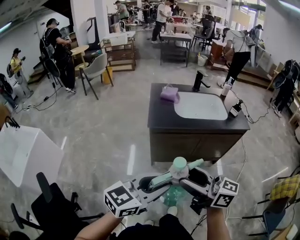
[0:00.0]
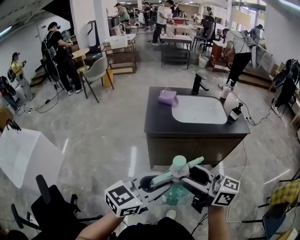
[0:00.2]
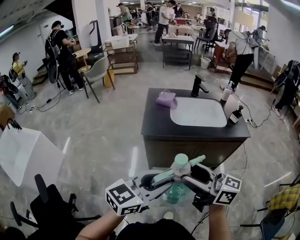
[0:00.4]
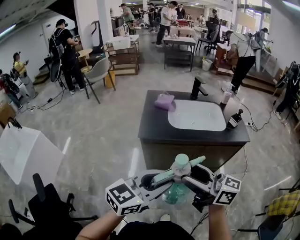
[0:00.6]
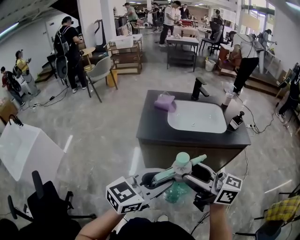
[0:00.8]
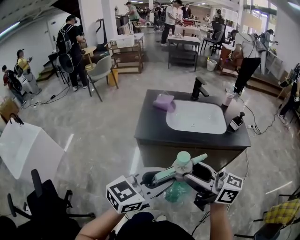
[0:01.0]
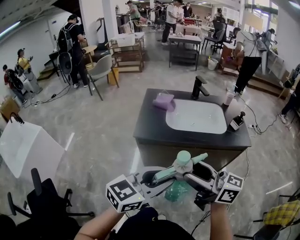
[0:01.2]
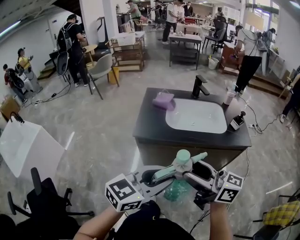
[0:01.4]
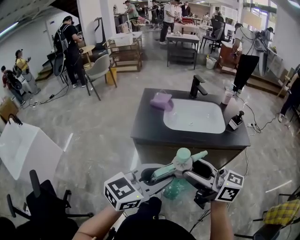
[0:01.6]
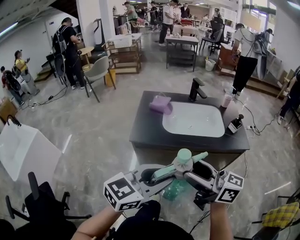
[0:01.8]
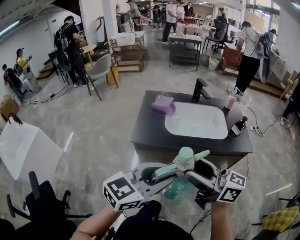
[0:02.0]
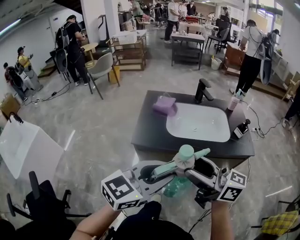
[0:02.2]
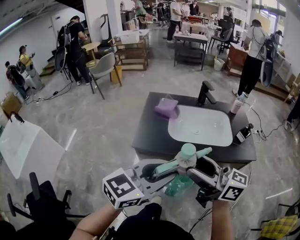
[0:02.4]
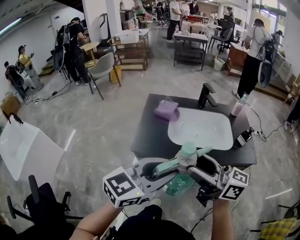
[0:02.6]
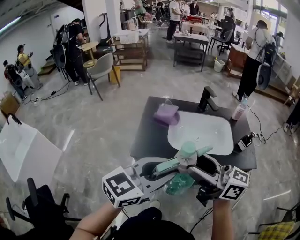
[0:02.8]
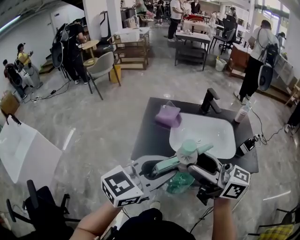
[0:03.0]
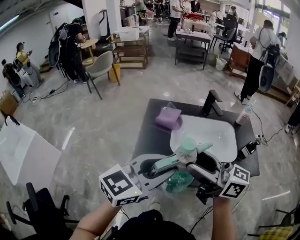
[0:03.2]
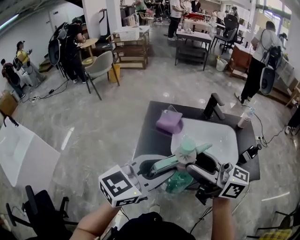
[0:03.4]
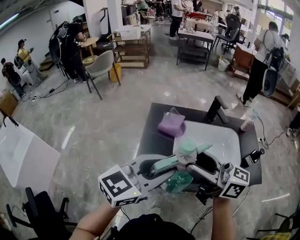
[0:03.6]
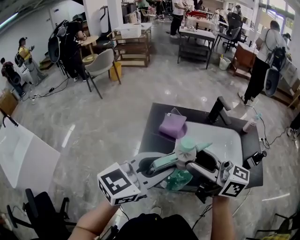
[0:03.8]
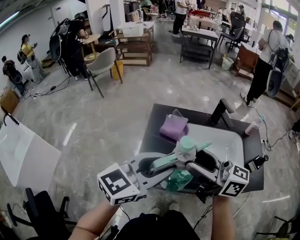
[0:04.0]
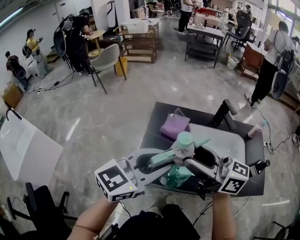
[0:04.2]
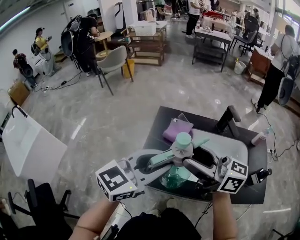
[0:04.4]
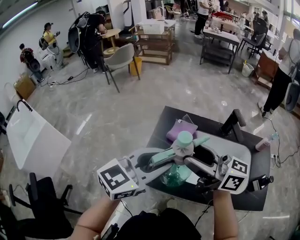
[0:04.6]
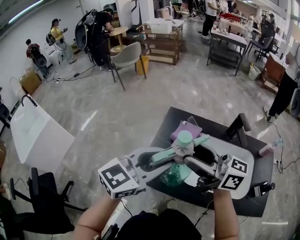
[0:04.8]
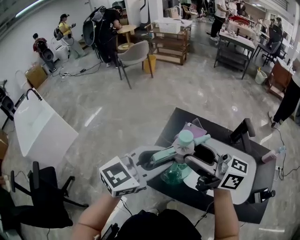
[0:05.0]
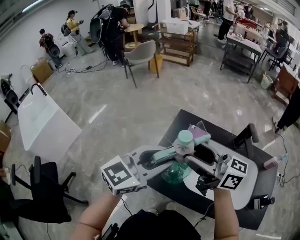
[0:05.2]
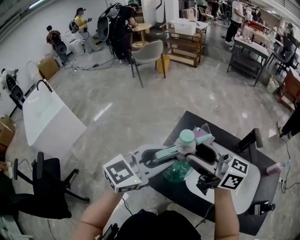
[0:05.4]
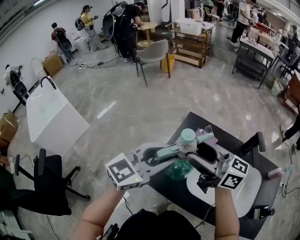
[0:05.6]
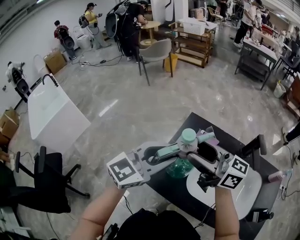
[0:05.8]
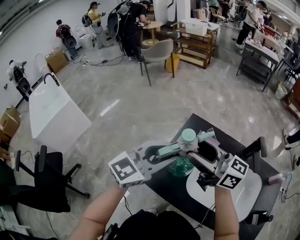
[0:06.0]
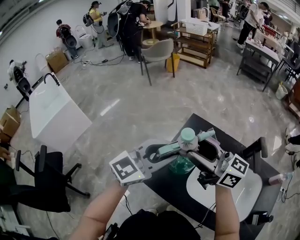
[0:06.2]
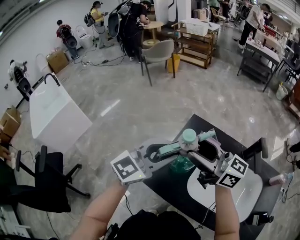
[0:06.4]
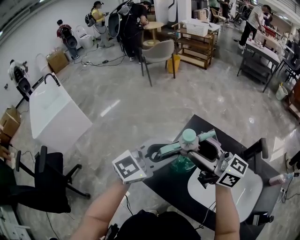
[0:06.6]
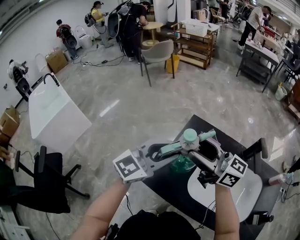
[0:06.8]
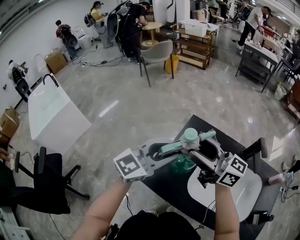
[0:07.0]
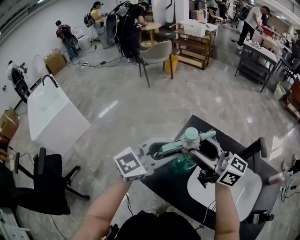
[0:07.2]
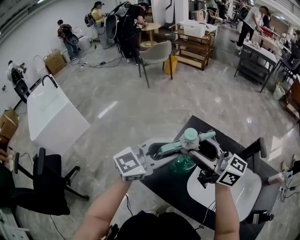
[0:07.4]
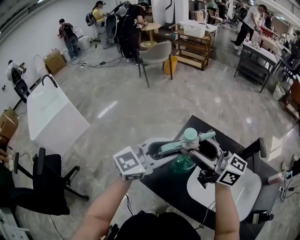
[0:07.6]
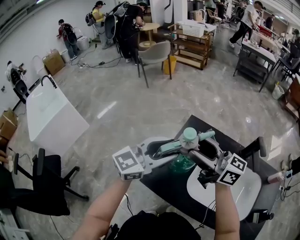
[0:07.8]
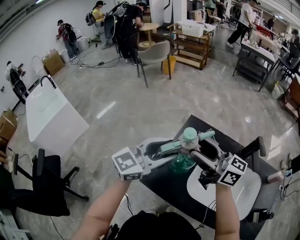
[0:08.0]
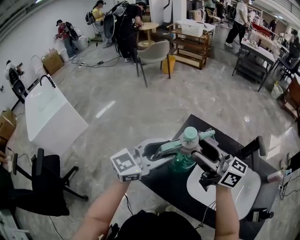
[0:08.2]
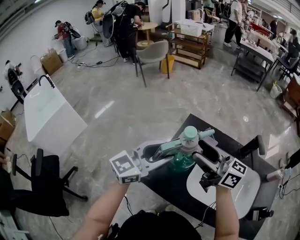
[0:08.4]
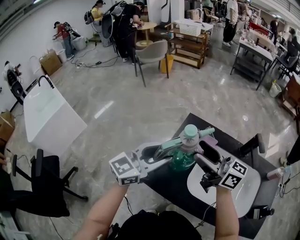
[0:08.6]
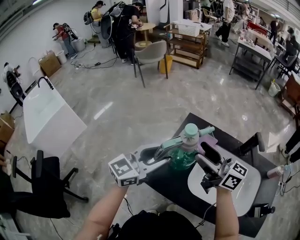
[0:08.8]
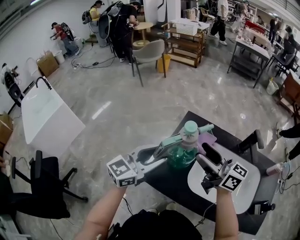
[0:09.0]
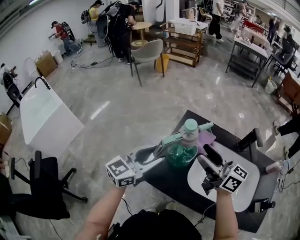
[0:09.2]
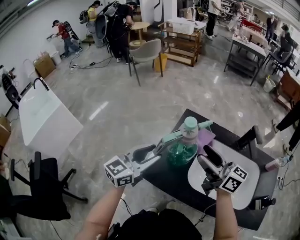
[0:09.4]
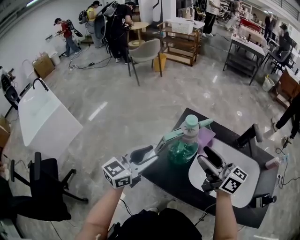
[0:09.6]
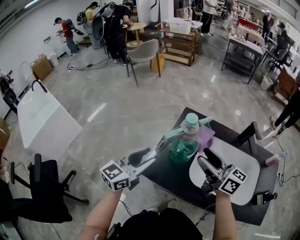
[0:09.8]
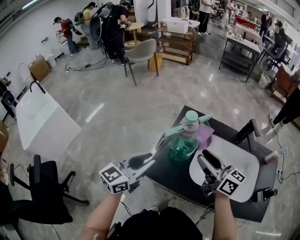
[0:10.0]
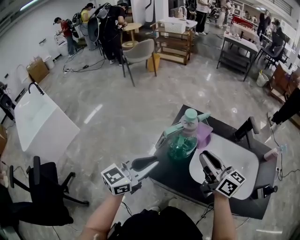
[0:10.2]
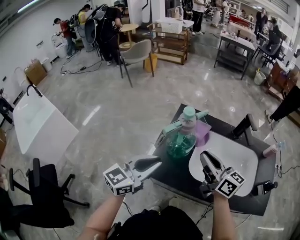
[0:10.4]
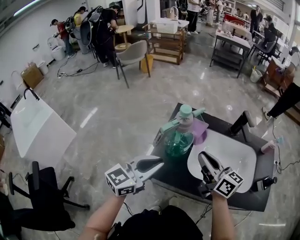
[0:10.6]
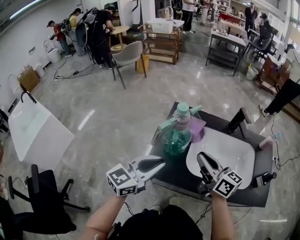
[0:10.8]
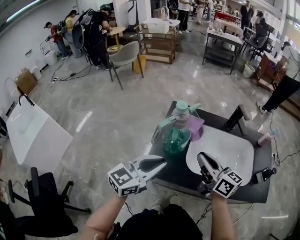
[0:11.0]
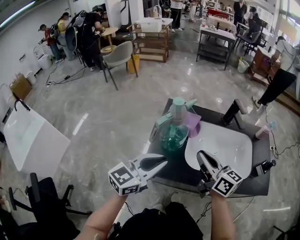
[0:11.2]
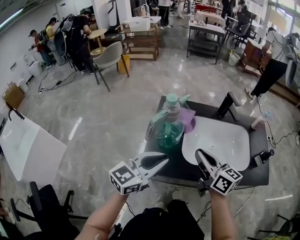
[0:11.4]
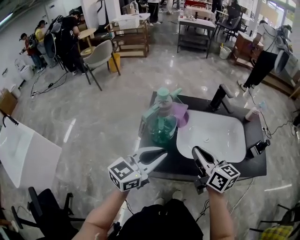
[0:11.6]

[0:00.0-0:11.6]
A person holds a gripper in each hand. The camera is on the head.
0:00.0 to 0:01.4: The two grippers go approximately 20 cm to the right and forward.
0:01.4 to 0:02.8: Both grippers move forward, some 15 cm.
0:02.8 to 0:04.4: Both grippers move forward, approximately 20 cm.
0:04.4 to 0:05.8: Both grippers move forward, approximately 10 cm.
0:05.8 to 0:07.2: The grippers make only small movements.
0:07.2 to 0:08.8: The left gripper shifts by some 5 cm.
0:08.8 to 0:10.2: Both grippers travel together backward, about 5 cm. The right gripper closes; the left gripper closes.
0:10.2 to 0:11.6: The left gripper shifts approximately 10 cm to the right; the right gripper shifts approximately 5 cm backward, and rotates some 20 degrees.

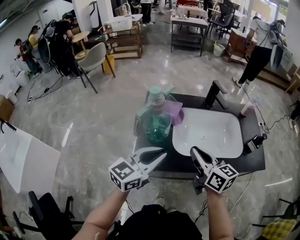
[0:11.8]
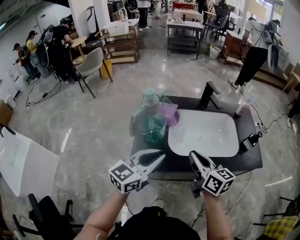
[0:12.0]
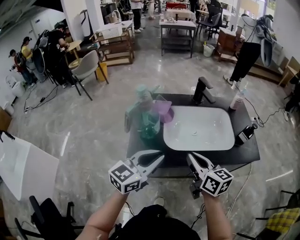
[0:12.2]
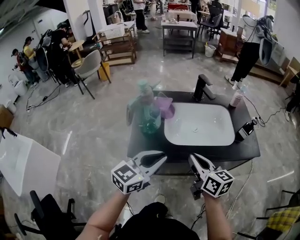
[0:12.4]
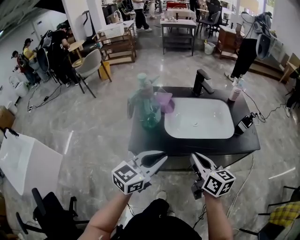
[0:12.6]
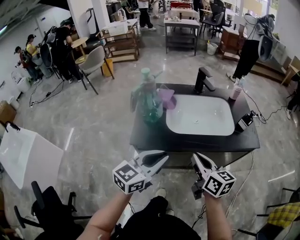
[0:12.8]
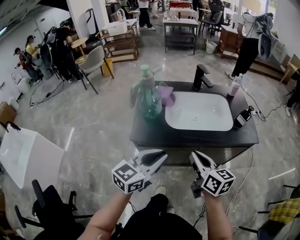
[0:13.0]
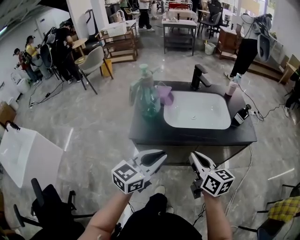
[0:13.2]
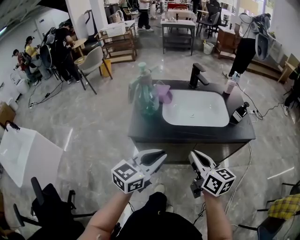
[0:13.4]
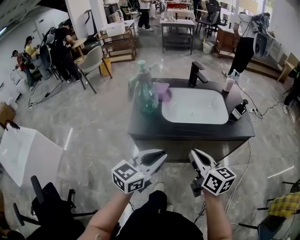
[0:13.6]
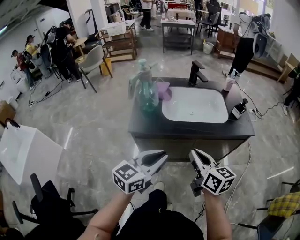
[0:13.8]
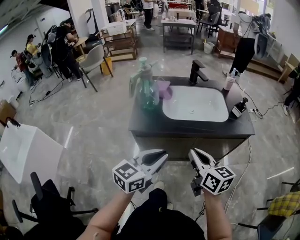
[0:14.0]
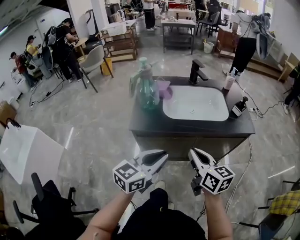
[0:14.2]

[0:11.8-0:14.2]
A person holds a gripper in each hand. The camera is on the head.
0:11.8 to 0:13.0: Both grippers move backward and to the right, some 20 cm.
0:13.0 to 0:14.2: The grippers both shift backward by approximately 5 cm.

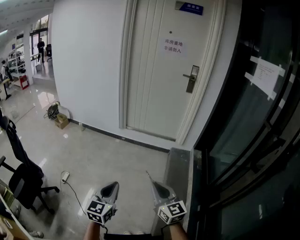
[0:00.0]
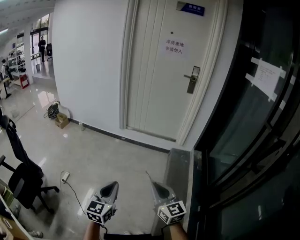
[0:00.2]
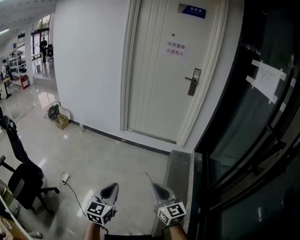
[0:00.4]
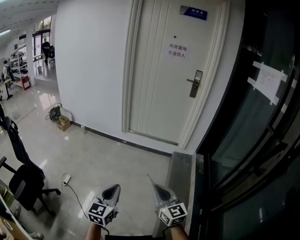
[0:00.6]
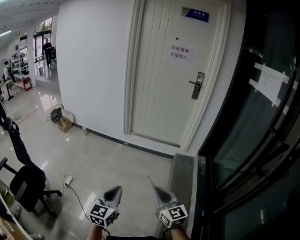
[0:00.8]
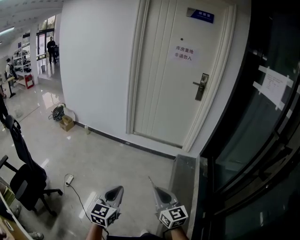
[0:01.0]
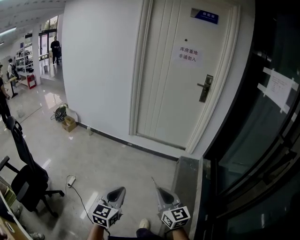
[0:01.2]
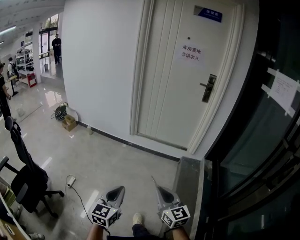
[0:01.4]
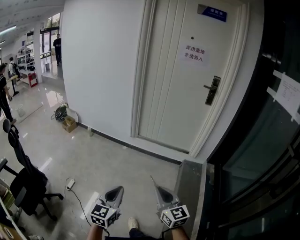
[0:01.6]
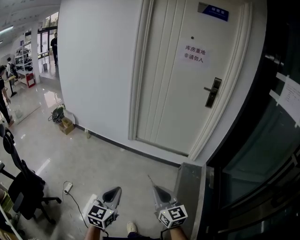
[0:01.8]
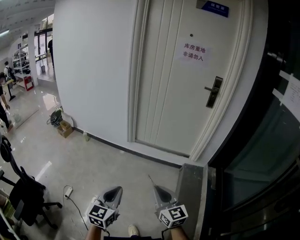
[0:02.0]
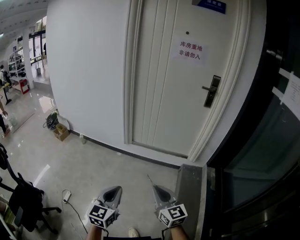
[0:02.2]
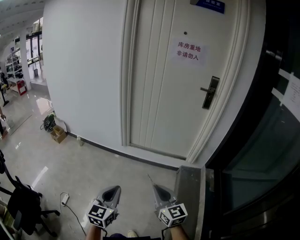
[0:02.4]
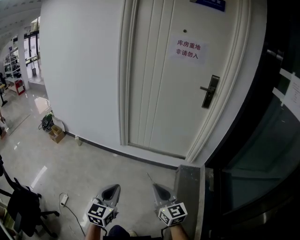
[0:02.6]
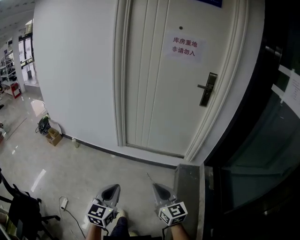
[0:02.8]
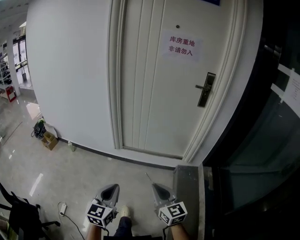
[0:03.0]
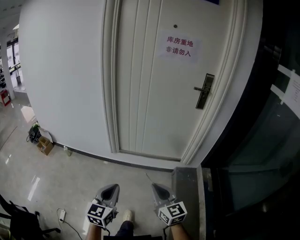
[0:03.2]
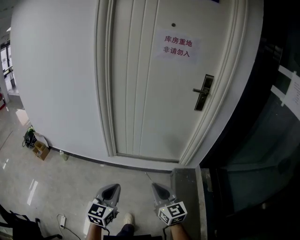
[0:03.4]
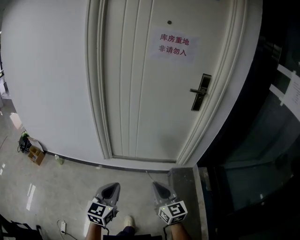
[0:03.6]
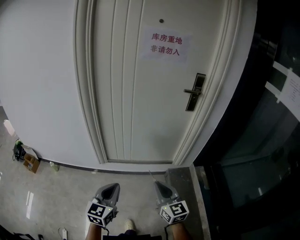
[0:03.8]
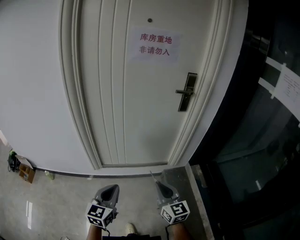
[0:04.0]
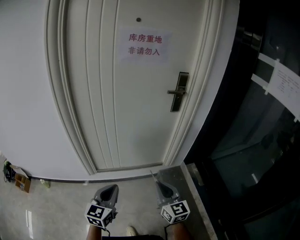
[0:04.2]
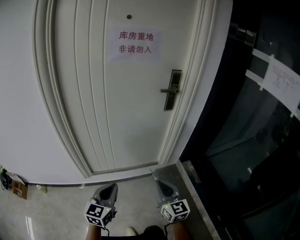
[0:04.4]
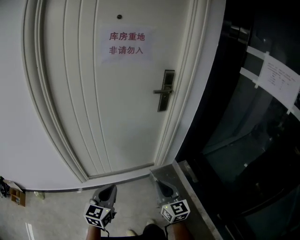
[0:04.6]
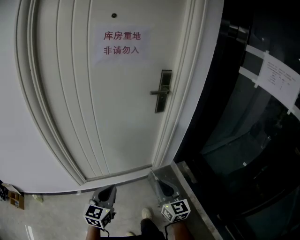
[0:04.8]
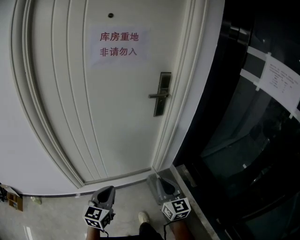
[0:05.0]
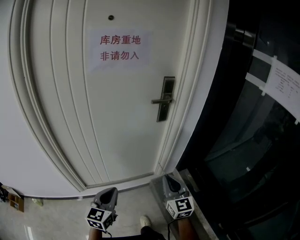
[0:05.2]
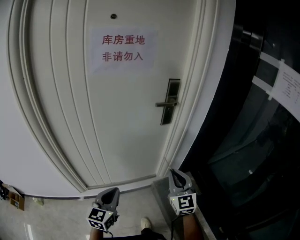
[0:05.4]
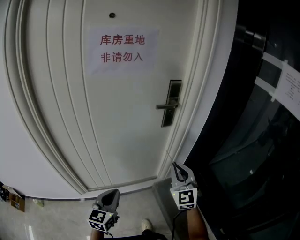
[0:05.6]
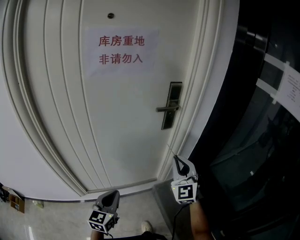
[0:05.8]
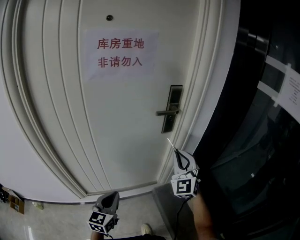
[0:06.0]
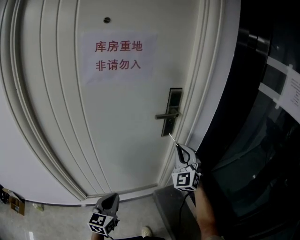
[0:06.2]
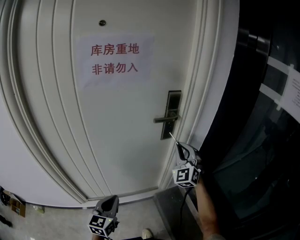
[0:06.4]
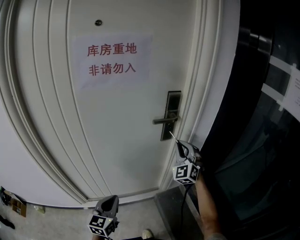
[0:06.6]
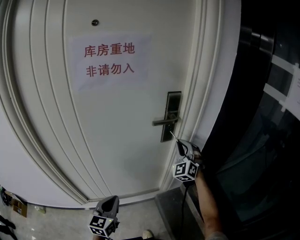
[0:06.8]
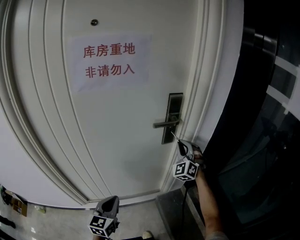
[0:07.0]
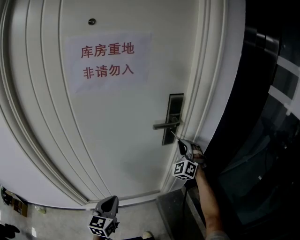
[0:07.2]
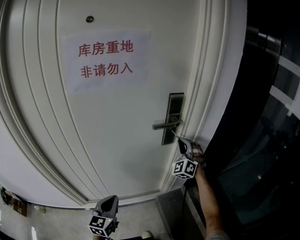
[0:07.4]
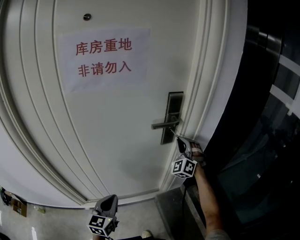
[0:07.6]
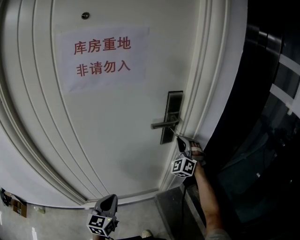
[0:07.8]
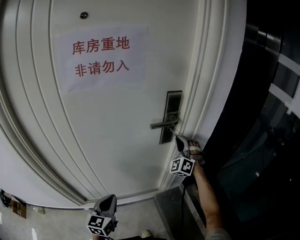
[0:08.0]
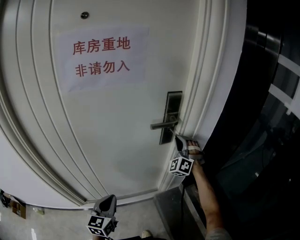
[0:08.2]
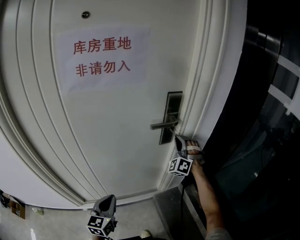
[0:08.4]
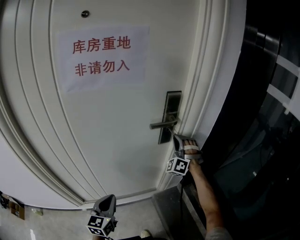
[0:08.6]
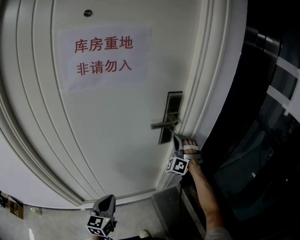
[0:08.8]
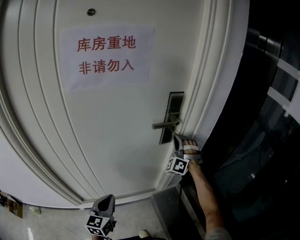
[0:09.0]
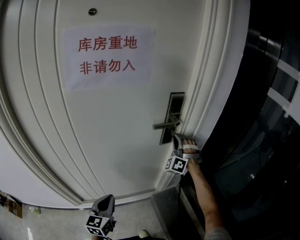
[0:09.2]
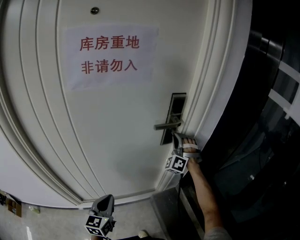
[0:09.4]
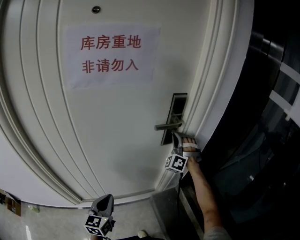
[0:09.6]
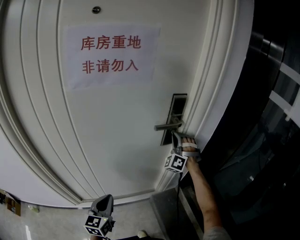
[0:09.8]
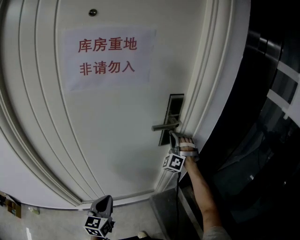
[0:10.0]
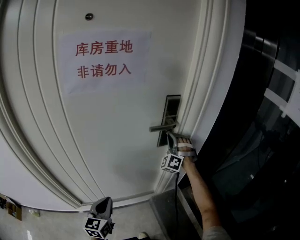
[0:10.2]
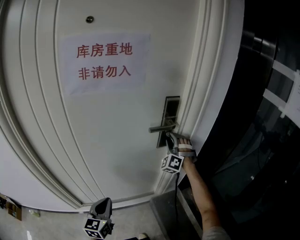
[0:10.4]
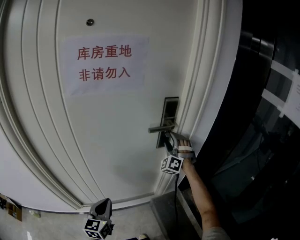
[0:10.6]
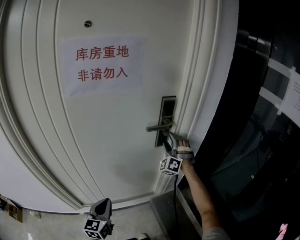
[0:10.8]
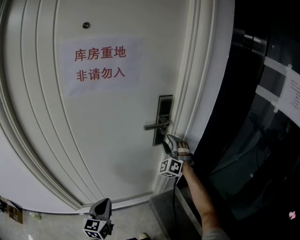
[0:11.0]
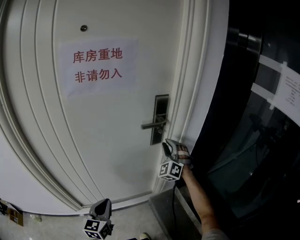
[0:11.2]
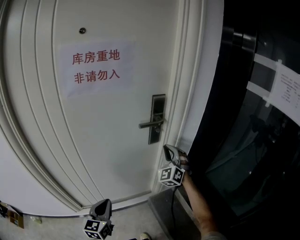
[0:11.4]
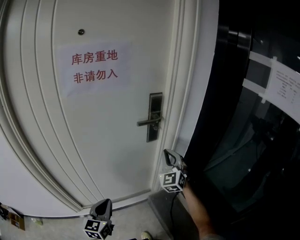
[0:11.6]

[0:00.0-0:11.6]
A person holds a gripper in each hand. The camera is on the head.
0:00.0 to 0:01.4: The grippers both shift forward and to the left by about 10 cm.
0:01.4 to 0:02.8: The grippers both shift forward by about 30 cm.
0:02.8 to 0:04.4: The left gripper ends up approximately 35 cm from where it was, and rotates some 30 degrees. Meanwhile the right gripper changes place by approximately 30 cm, and swivels roughly 30 degrees.
0:04.4 to 0:05.8: The right gripper goes approximately 25 cm forward and upward, and swivels approximately 40 degrees. The left gripper moves forward, about 15 cm.
0:05.8 to 0:07.2: The left gripper travels forward by approximately 10 cm. Meanwhile the right gripper heads forward, covering roughly 25 cm, and swivels roughly 30 degrees.
0:07.2 to 0:08.8: The right gripper turns by some 20 degrees.
0:08.8 to 0:10.2: The grippers make only small movements.
0:10.2 to 0:11.6: The right gripper is displaced backward by about 15 cm, rolls clockwise, seen from behind, by about 40 degrees, and opens, then closes once more; the left gripper goes about 5 cm backward.
